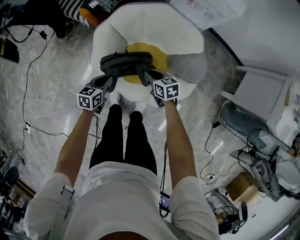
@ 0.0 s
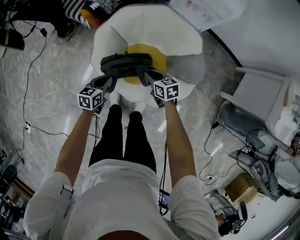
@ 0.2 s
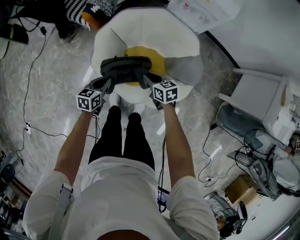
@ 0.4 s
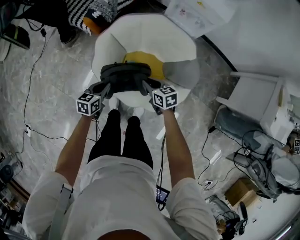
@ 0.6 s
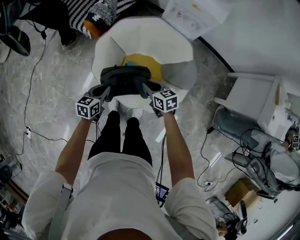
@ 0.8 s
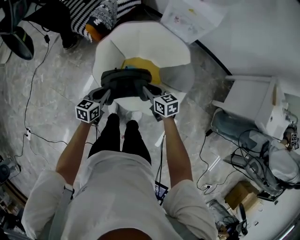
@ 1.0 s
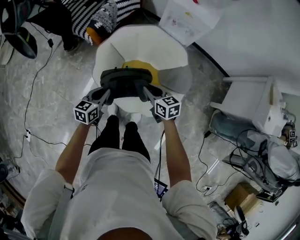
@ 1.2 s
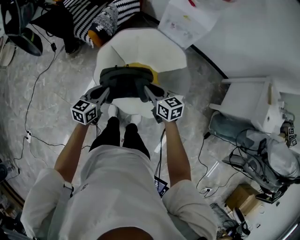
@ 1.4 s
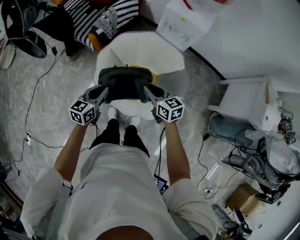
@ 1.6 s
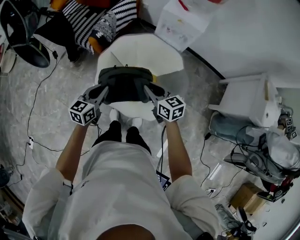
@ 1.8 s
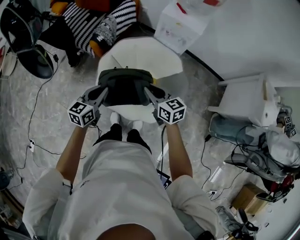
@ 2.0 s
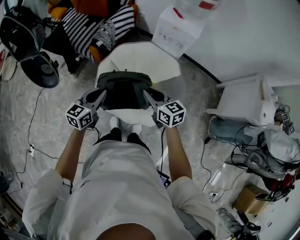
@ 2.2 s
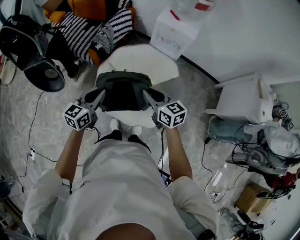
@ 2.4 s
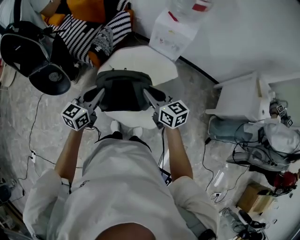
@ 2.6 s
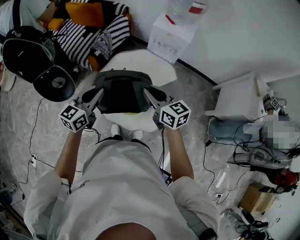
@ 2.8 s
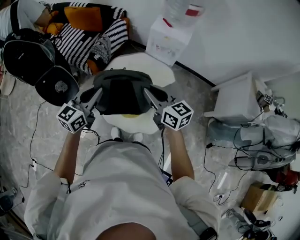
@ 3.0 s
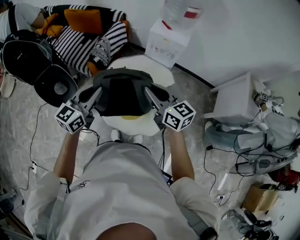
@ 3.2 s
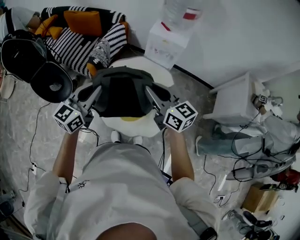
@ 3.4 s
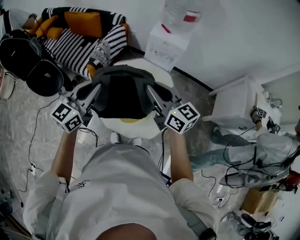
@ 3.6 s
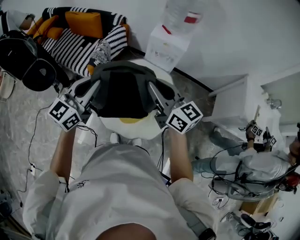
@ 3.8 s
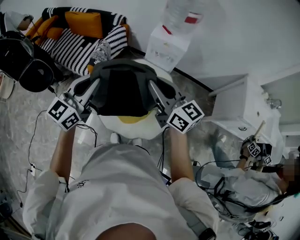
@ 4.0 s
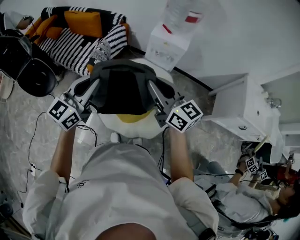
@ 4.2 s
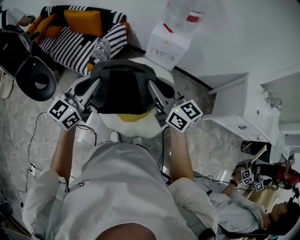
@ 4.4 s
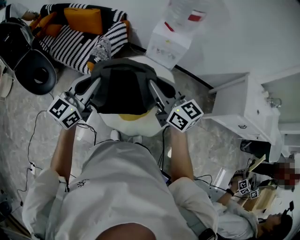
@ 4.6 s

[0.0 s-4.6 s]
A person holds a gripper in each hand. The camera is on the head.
0.0 to 1.6 s: Both grippers travel together upward, some 25 cm. The right gripper changes its angle by approximately 20 degrees.
1.6 to 3.0 s: The two grippers go some 20 cm upward. The left gripper swivels roughly 20 degrees.
3.0 to 4.6 s: Both grippers move upward, approximately 10 cm.

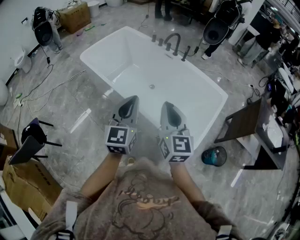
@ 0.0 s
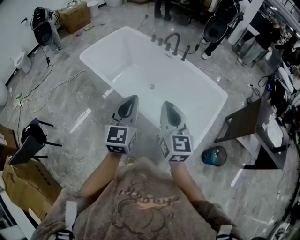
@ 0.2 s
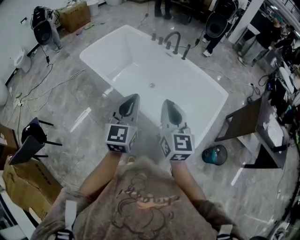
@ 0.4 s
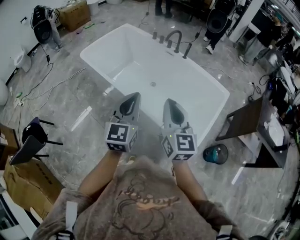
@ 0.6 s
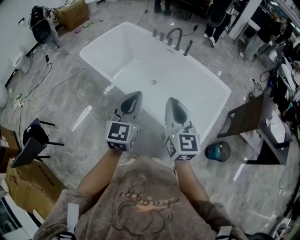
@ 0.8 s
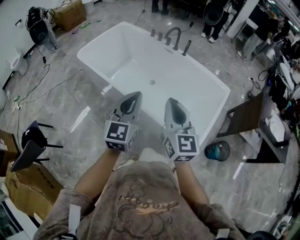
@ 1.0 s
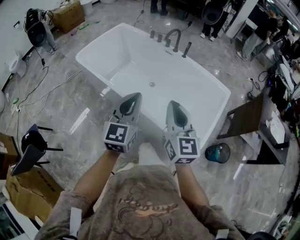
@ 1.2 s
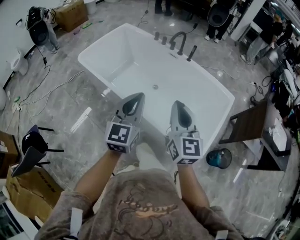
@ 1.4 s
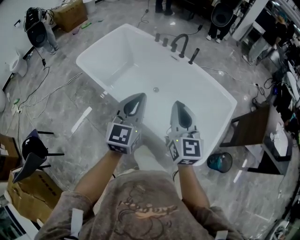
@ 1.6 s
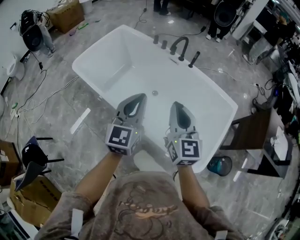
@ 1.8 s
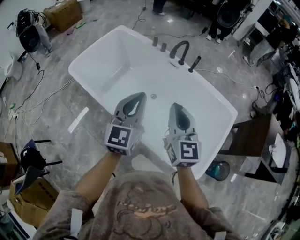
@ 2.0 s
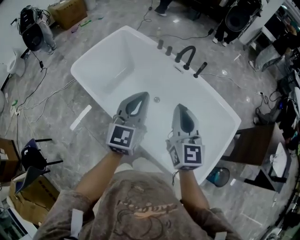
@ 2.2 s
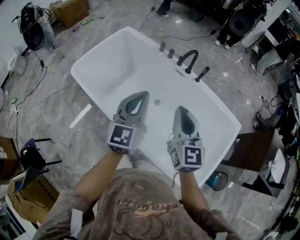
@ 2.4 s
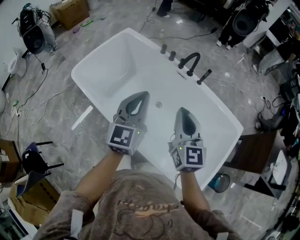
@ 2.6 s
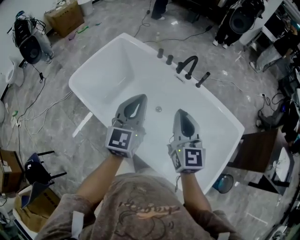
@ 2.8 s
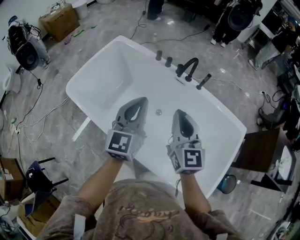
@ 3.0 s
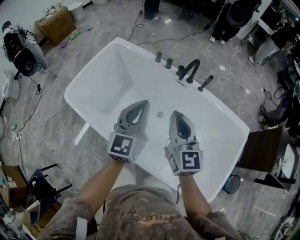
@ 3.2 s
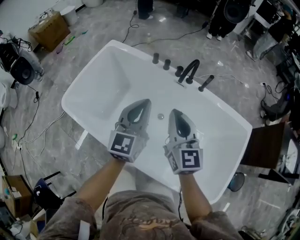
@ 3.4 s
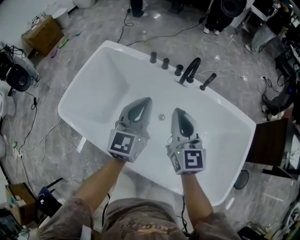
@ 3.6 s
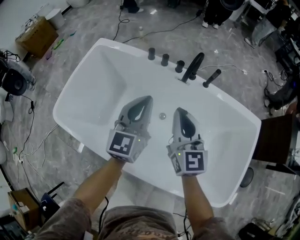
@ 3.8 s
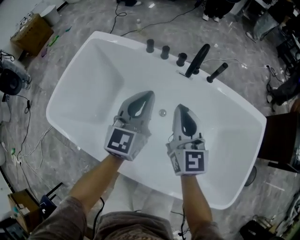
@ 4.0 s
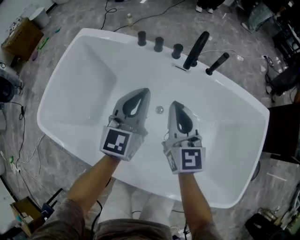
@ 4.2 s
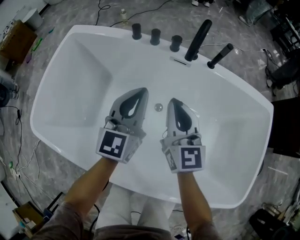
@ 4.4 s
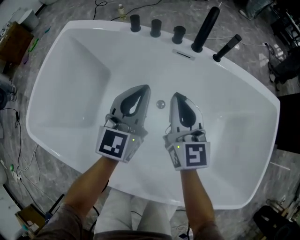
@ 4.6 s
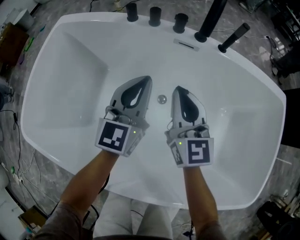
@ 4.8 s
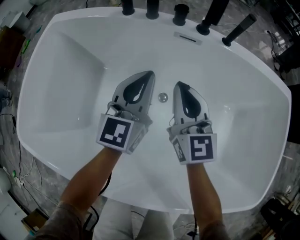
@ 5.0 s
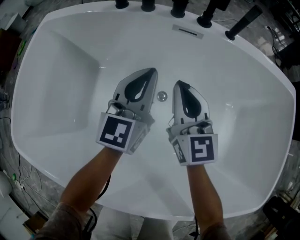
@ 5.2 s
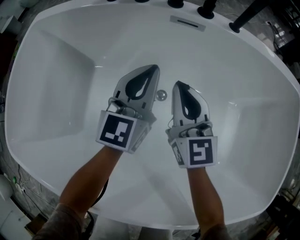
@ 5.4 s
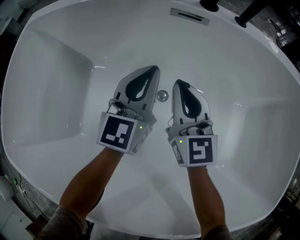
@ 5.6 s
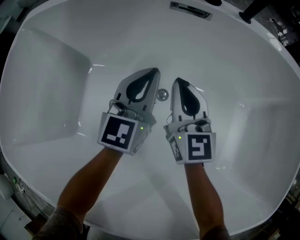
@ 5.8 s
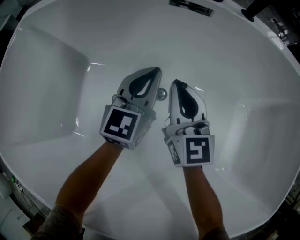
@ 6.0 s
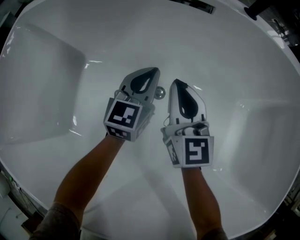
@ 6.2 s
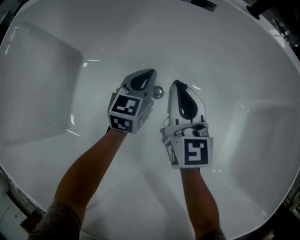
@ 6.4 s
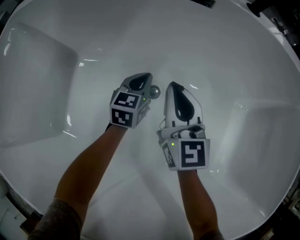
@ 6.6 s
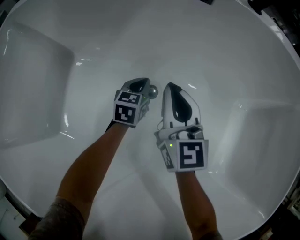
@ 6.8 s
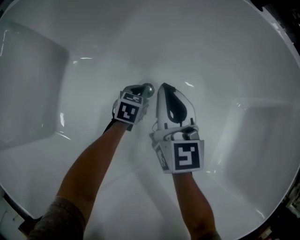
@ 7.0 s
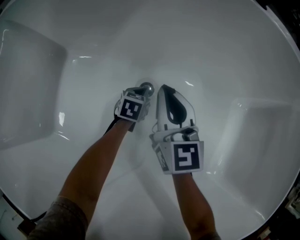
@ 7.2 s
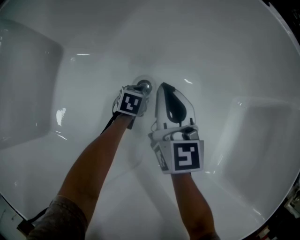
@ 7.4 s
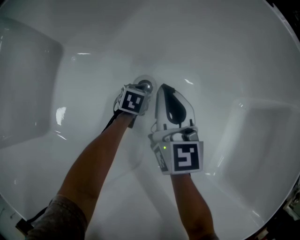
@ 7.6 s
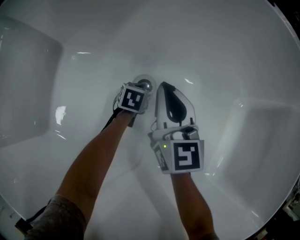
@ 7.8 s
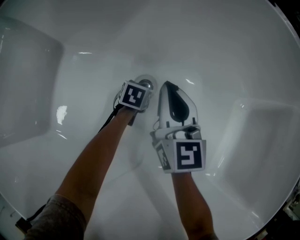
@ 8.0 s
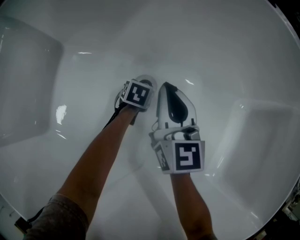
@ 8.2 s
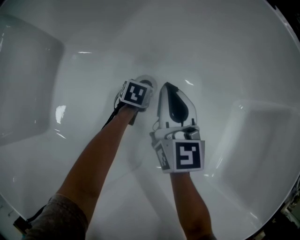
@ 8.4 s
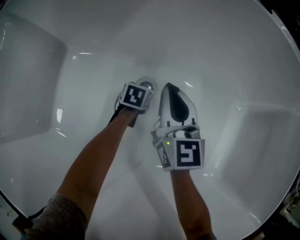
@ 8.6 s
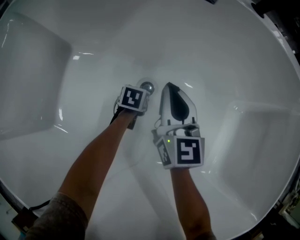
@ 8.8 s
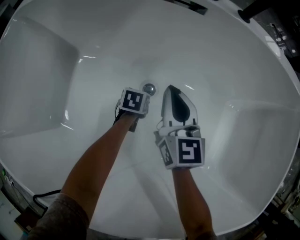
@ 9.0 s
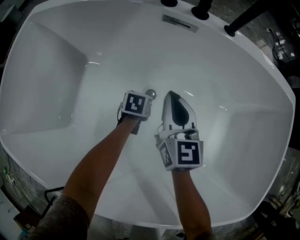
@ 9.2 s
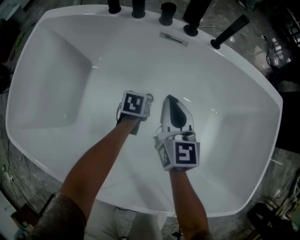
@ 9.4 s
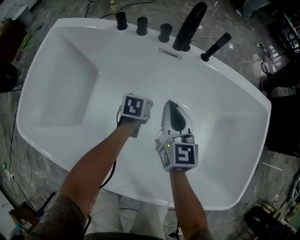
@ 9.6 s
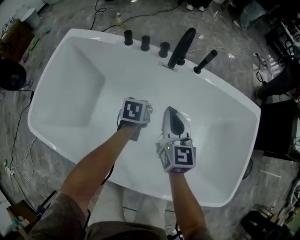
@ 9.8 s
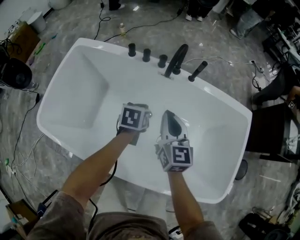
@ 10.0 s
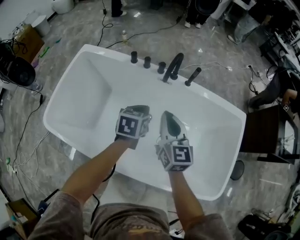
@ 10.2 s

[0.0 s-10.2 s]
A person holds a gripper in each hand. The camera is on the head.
0.0 to 1.4 s: The two grippers go some 10 cm forward.
1.4 to 3.0 s: The grippers both shift forward by roughly 35 cm.
3.0 to 4.4 s: Both grippers move downward and forward, some 30 cm.
4.4 to 5.8 s: The two grippers go roughly 25 cm downward.
5.8 to 7.2 s: The left gripper shifts some 35 cm downward, and tips its fingers downward by roughly 50 degrees. Meanwhile the right gripper shifts some 10 cm downward.
7.2 to 8.8 s: The grippers stay close to where they were, moving slightly.
8.8 to 10.2 s: The two grippers go approximately 60 cm upward. The left gripper changes its angle by roughly 20 degrees.

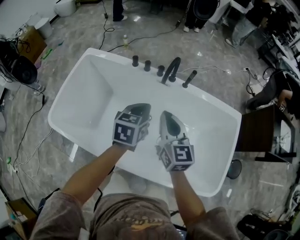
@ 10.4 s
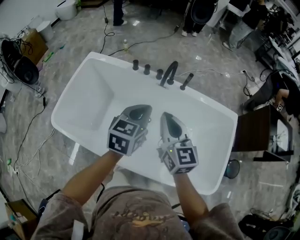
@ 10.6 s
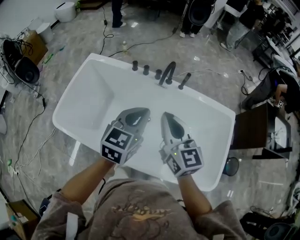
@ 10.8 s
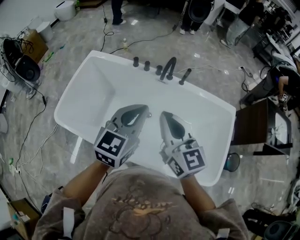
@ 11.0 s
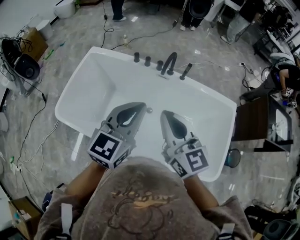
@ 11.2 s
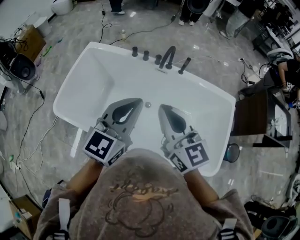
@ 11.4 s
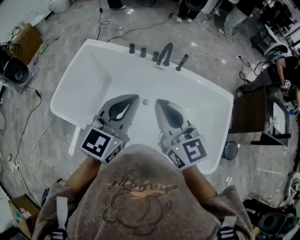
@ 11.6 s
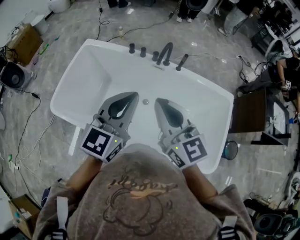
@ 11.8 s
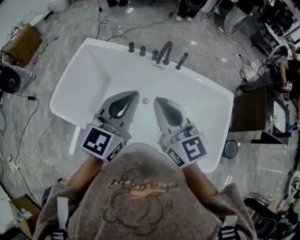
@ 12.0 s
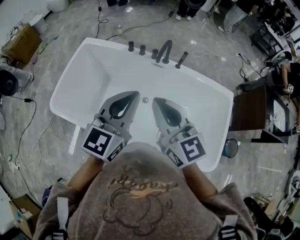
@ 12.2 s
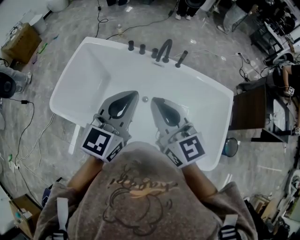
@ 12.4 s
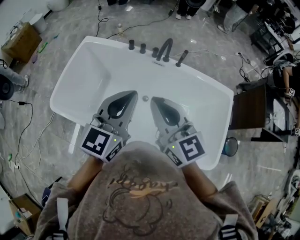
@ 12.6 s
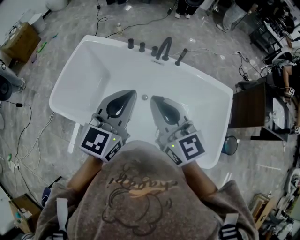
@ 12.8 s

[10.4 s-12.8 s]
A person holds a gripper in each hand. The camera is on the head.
10.4 to 11.6 s: Both grippers travel together upward and backward, approximately 20 cm. The left gripper points its fingers some 30 degrees further upward.
11.6 to 12.8 s: The grippers stay close to where they were, moving slightly.

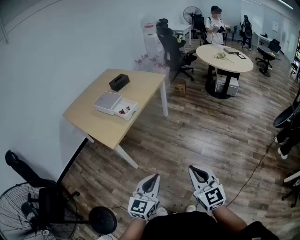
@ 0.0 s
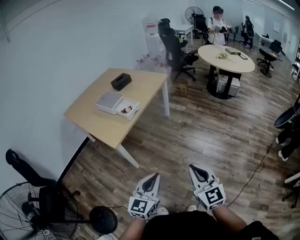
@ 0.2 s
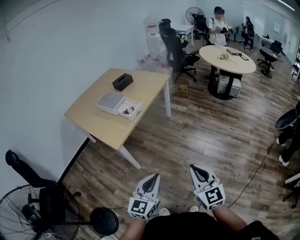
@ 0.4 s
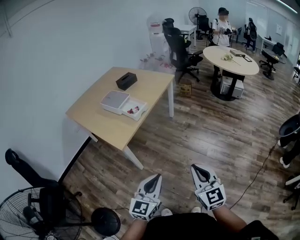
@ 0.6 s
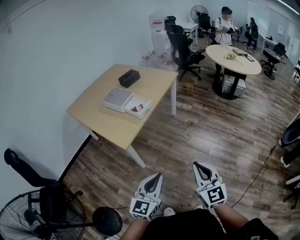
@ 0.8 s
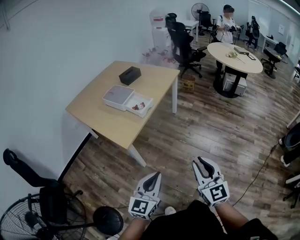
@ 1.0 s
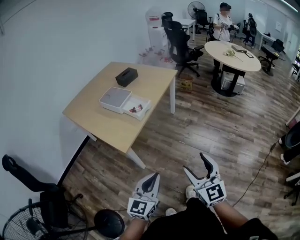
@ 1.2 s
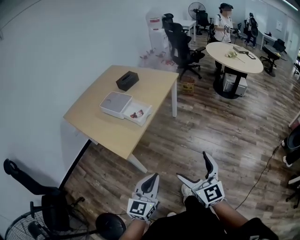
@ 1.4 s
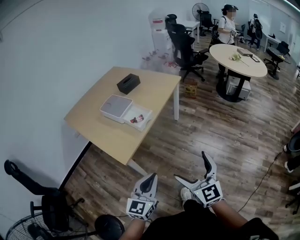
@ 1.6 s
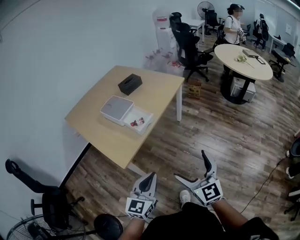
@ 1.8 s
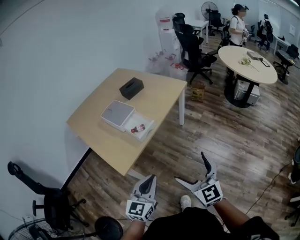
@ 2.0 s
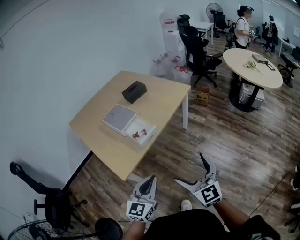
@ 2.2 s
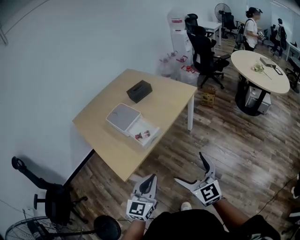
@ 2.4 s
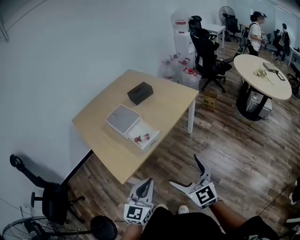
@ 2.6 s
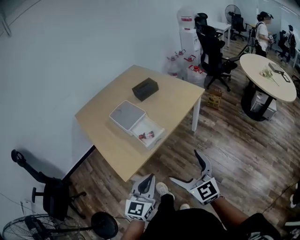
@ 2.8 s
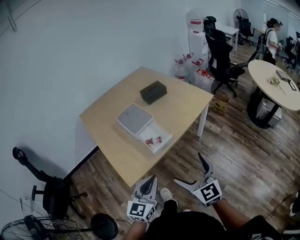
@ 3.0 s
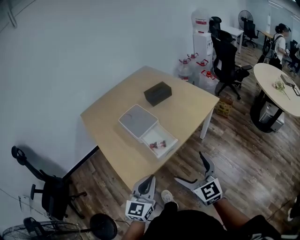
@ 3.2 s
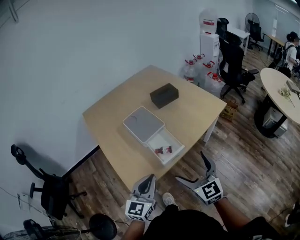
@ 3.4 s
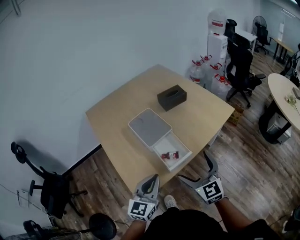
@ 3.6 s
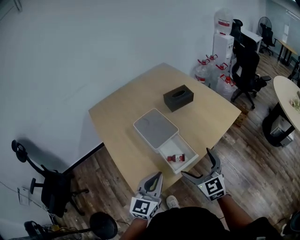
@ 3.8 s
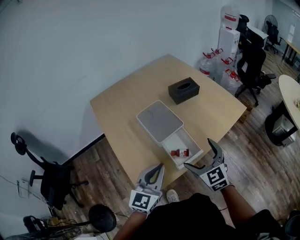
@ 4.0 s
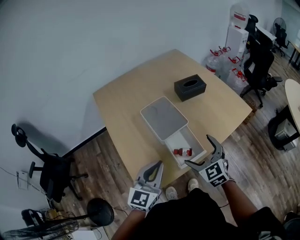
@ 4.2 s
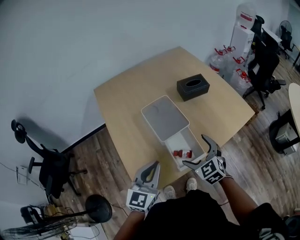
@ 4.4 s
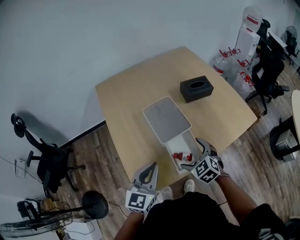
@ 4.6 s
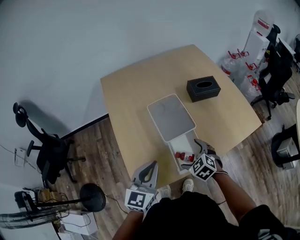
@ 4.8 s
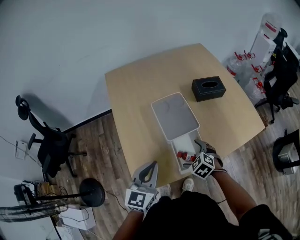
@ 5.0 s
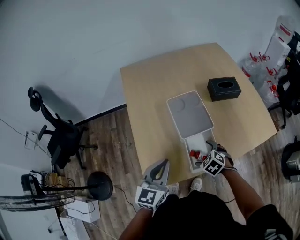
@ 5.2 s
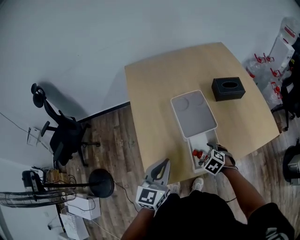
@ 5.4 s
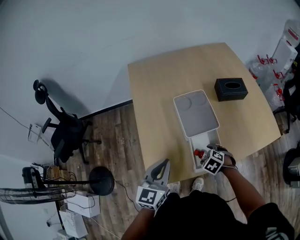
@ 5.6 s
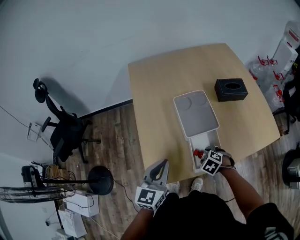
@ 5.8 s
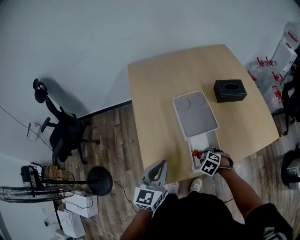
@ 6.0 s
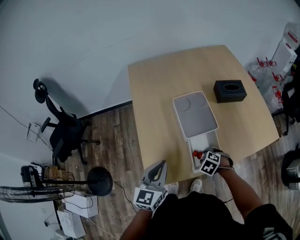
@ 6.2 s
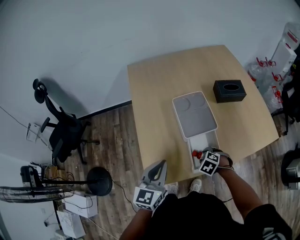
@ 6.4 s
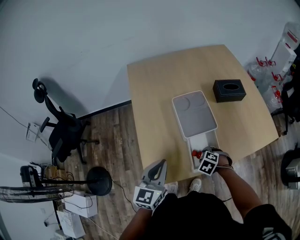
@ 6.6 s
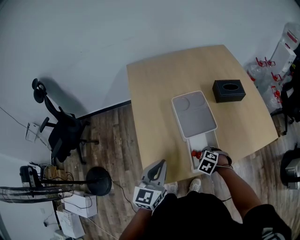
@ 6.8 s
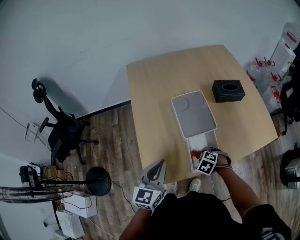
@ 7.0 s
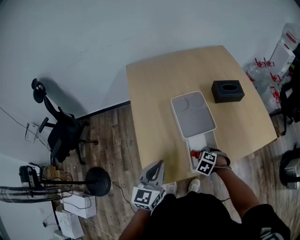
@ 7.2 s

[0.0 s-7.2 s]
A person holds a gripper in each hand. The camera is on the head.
0.0 to 1.4 s: The grippers both shift to the left and forward by about 20 cm. The right gripper opens its fingers.
1.4 to 2.8 s: Both grippers move forward, about 25 cm. The right gripper changes its angle by about 20 degrees.
2.8 to 4.4 s: The left gripper shifts about 30 cm forward and to the left; the right gripper moves forward, about 30 cm, and rotates some 40 degrees.
4.4 to 5.8 s: The left gripper shifts by some 5 cm. Meanwhile the right gripper heads downward, covering roughly 15 cm, points its fingers approximately 40 degrees further downward, and closes its fingers.
5.8 to 7.2 s: There are only small adjustments of the grippers.
